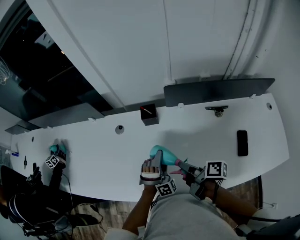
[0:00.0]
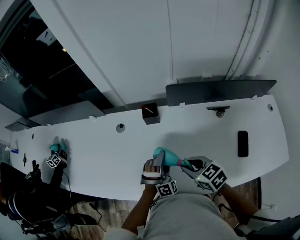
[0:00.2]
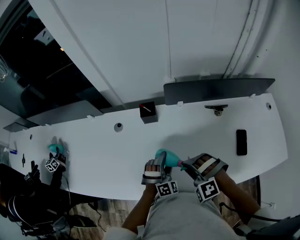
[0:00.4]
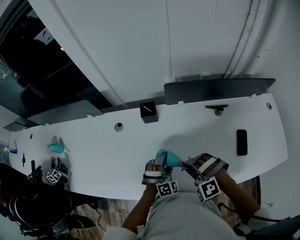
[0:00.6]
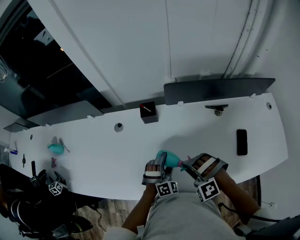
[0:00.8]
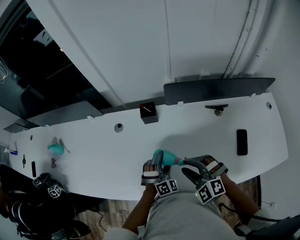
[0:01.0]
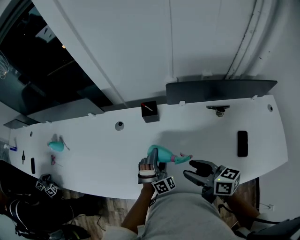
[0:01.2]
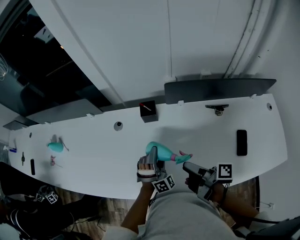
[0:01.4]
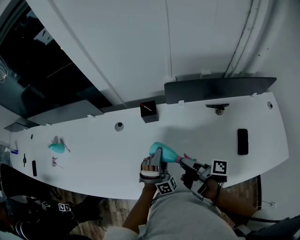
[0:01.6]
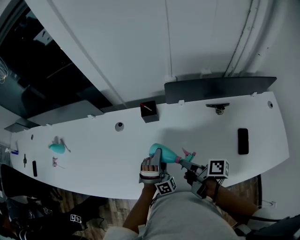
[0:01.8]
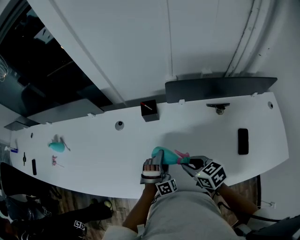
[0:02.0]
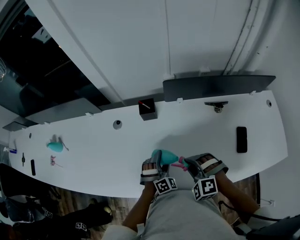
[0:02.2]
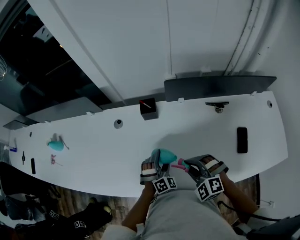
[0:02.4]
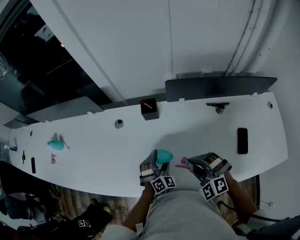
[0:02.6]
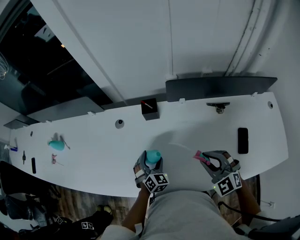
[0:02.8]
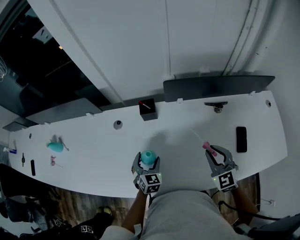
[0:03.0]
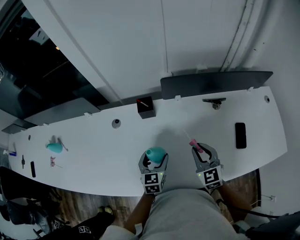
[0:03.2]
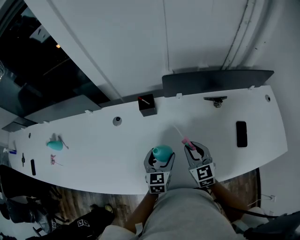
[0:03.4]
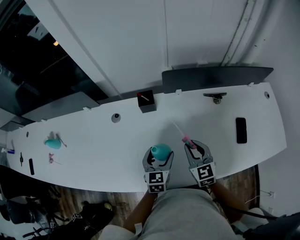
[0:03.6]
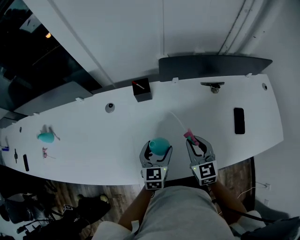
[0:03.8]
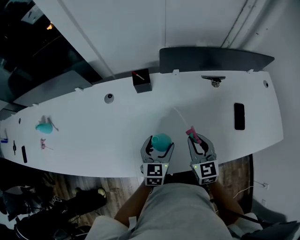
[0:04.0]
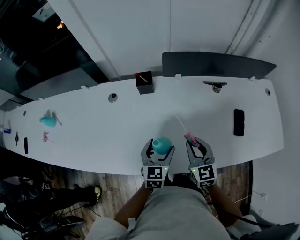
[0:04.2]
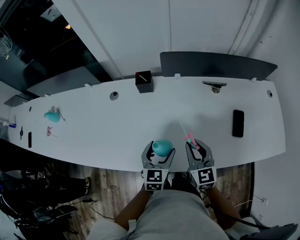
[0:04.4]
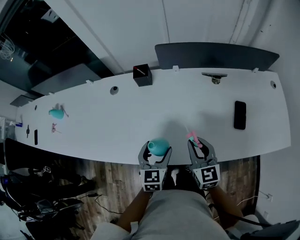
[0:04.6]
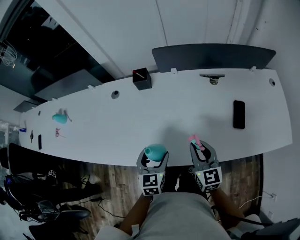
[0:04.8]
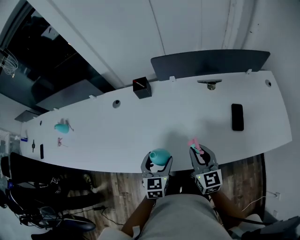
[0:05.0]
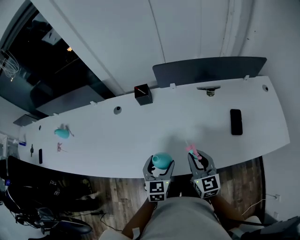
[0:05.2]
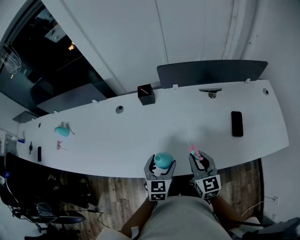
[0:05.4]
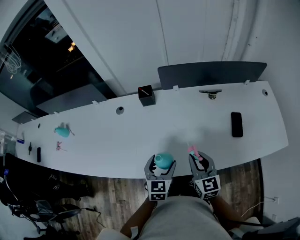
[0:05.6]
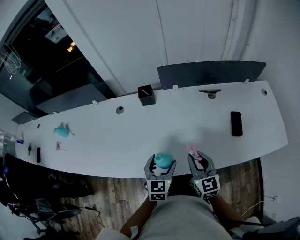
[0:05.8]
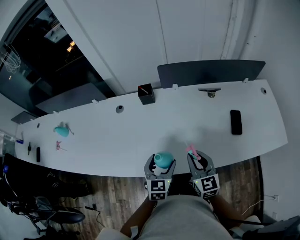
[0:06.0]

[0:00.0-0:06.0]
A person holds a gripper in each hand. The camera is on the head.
0:00.0 to 0:01.6: The right gripper moves some 5 cm upward and comes back.
0:01.6 to 0:03.0: The left gripper shifts some 10 cm to the left, and twists approximately 60 degrees counterclockwise, seen from behind, while the right gripper is displaced to the right by approximately 10 cm, twists approximately 120 degrees counterclockwise, seen from behind, and closes up.
0:03.0 to 0:04.4: The left gripper goes approximately 15 cm to the right, backward and upward, and changes its angle by some 20 degrees. Meanwhile the right gripper shifts about 10 cm backward, and swivels some 20 degrees.
0:04.4 to 0:06.0: Both grippers move backward, approximately 5 cm.

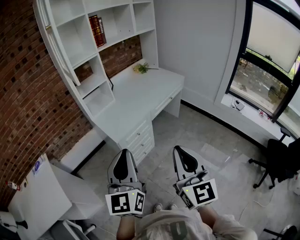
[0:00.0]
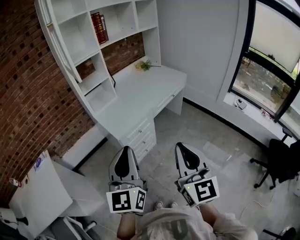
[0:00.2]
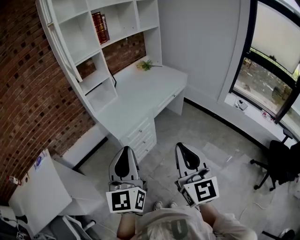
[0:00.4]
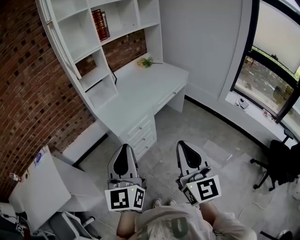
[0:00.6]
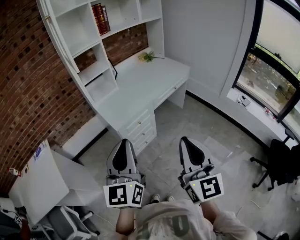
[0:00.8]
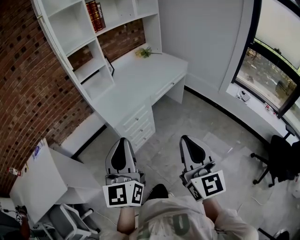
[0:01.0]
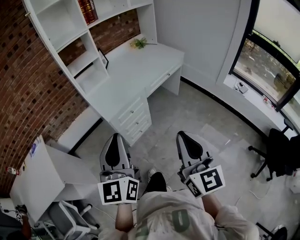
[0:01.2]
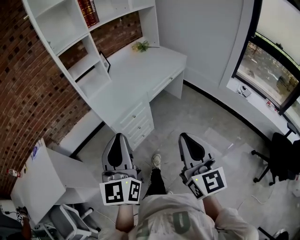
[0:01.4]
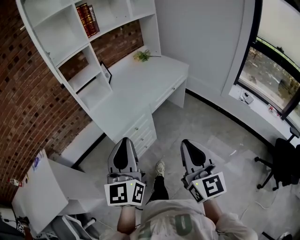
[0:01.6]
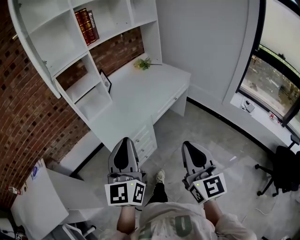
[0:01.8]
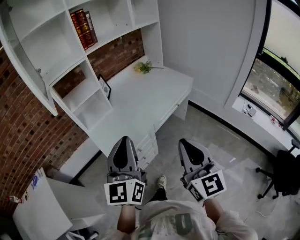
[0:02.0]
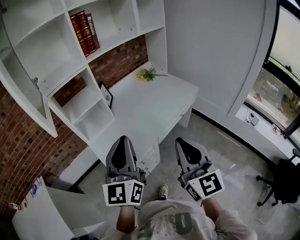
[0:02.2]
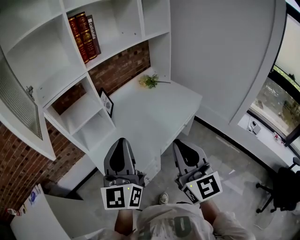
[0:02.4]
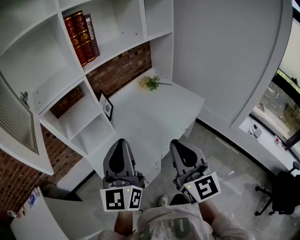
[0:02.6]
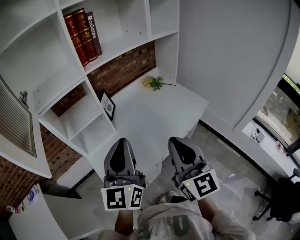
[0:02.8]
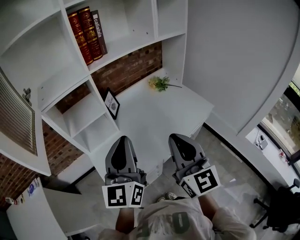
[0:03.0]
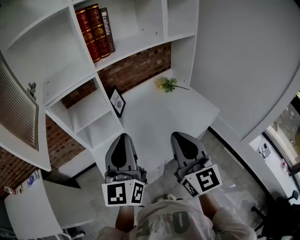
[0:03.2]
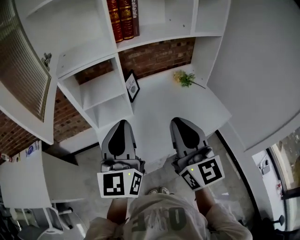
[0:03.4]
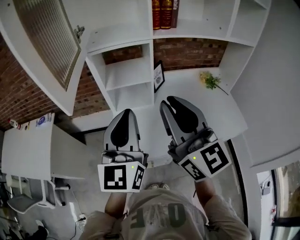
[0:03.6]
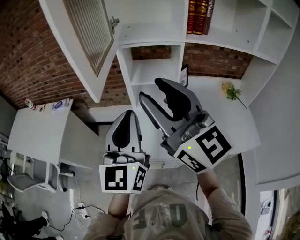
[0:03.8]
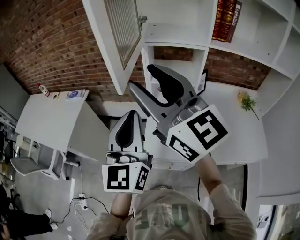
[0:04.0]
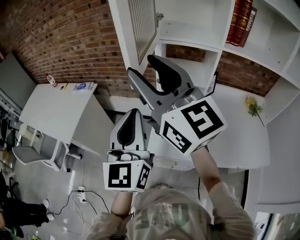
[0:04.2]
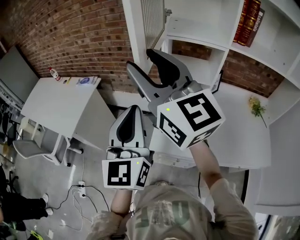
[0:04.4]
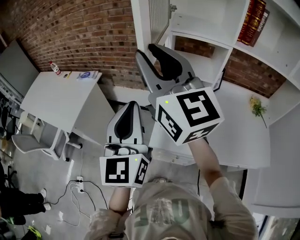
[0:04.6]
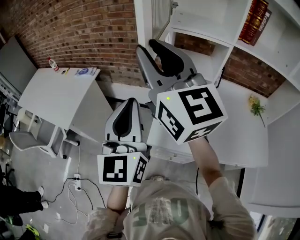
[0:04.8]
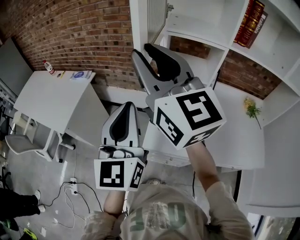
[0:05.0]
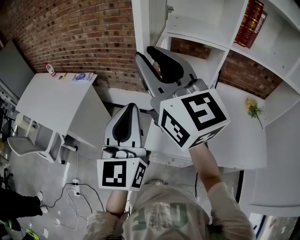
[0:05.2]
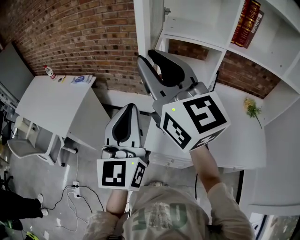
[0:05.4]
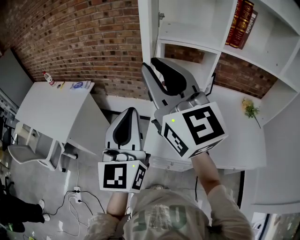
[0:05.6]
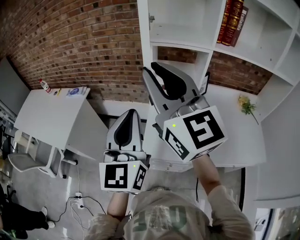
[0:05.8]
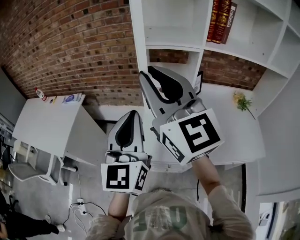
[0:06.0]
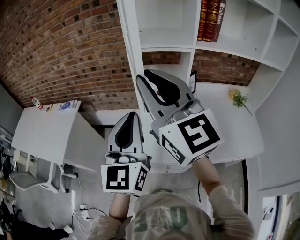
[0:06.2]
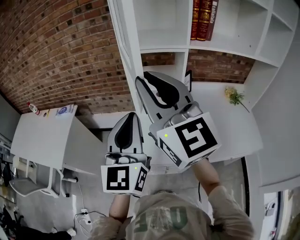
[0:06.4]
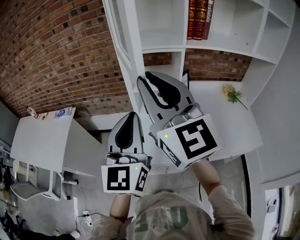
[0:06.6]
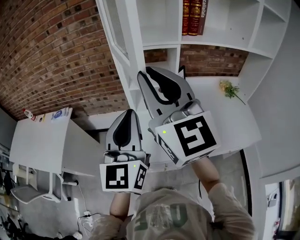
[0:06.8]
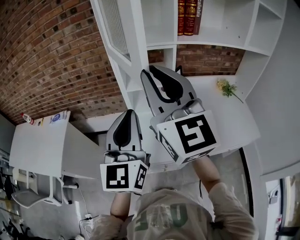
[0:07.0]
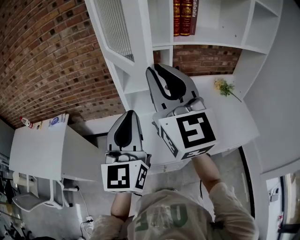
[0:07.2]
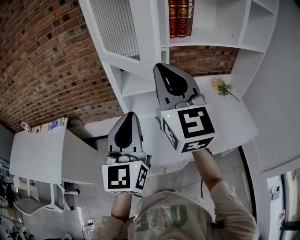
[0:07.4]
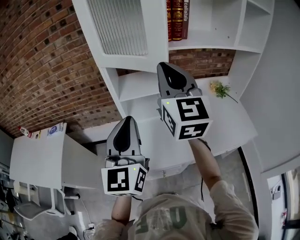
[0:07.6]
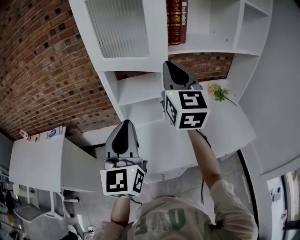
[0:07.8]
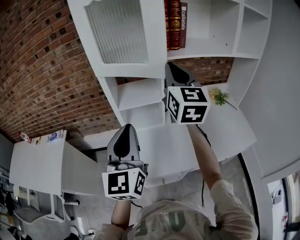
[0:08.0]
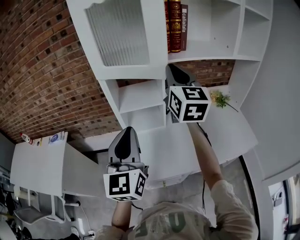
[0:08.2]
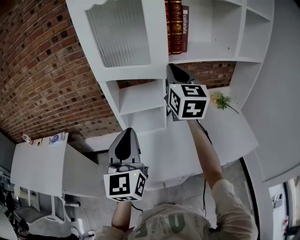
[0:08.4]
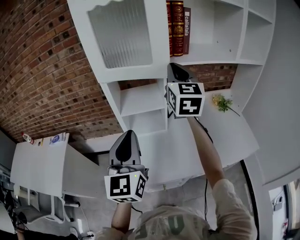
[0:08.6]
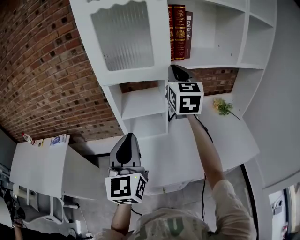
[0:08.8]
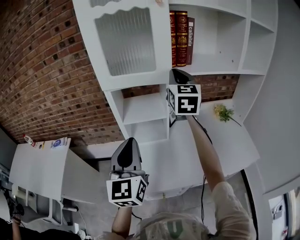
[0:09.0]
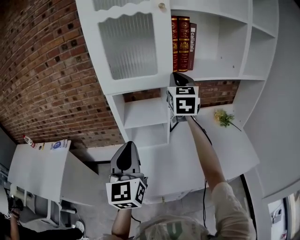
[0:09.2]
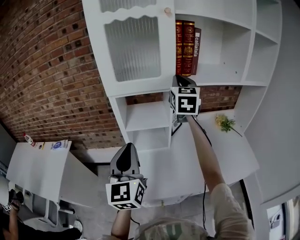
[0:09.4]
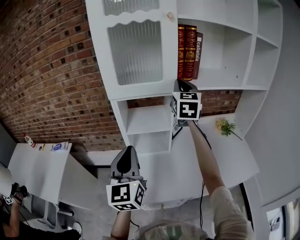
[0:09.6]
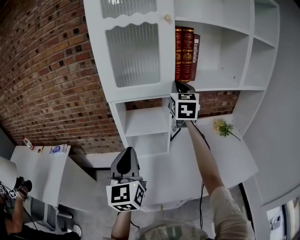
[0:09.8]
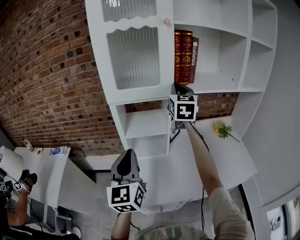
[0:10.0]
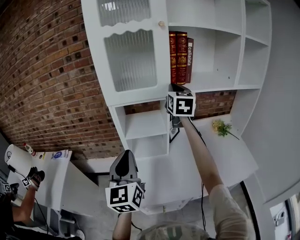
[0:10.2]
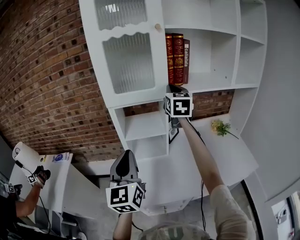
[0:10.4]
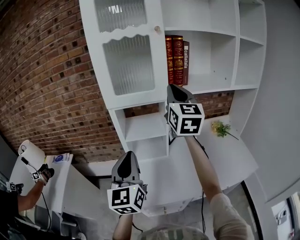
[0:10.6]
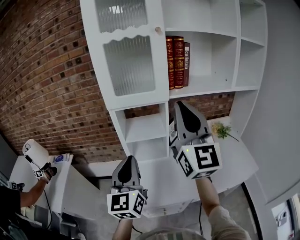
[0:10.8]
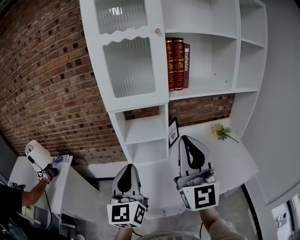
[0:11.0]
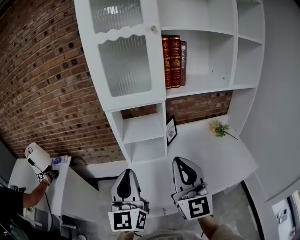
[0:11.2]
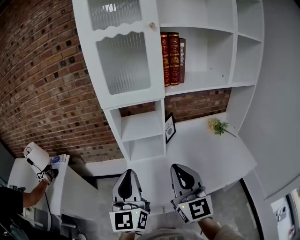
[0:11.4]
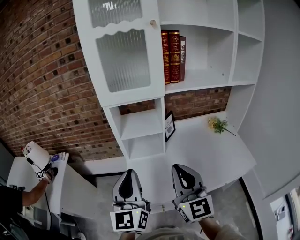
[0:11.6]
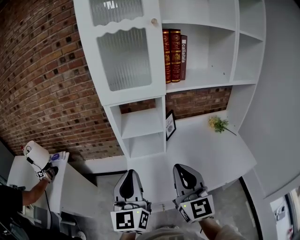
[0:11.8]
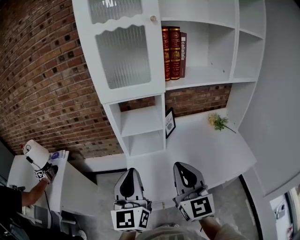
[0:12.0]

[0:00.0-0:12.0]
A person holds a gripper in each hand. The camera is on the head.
0:00.0 to 0:01.6: The right gripper shifts about 10 cm to the right, forward and downward. Meanwhile the left gripper is displaced forward and to the right by roughly 10 cm.
0:01.6 to 0:03.0: The two grippers go about 40 cm forward.
0:03.0 to 0:04.4: The right gripper shifts by some 40 cm, turns by about 60 degrees, and opens up. The left gripper changes place by roughly 25 cm, and swivels about 50 degrees.
0:04.4 to 0:06.0: The grippers both shift to the right by some 5 cm. The right gripper closes up.
0:06.0 to 0:07.6: The left gripper goes approximately 5 cm to the right, while the right gripper shifts some 15 cm to the right and forward, and turns by about 30 degrees.
0:07.6 to 0:09.0: The right gripper shifts some 15 cm forward.
0:09.0 to 0:10.4: The grippers stay close to where they were, moving slightly.
0:10.4 to 0:12.0: The right gripper travels backward by about 30 cm, while the left gripper goes some 5 cm backward.

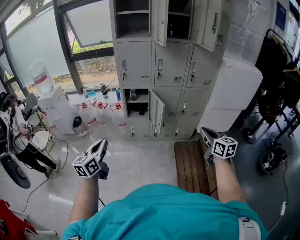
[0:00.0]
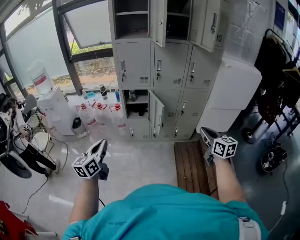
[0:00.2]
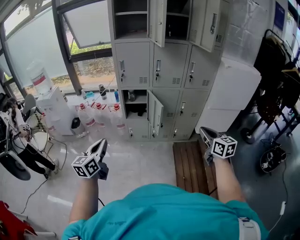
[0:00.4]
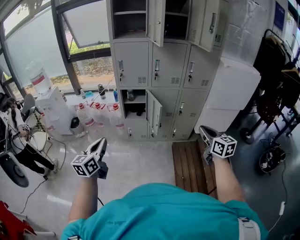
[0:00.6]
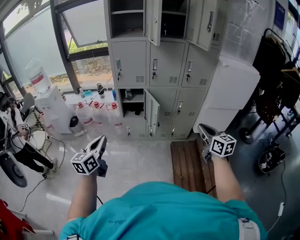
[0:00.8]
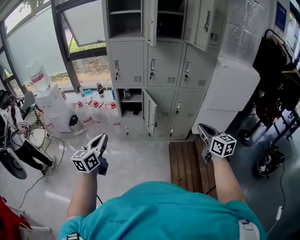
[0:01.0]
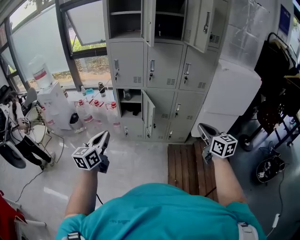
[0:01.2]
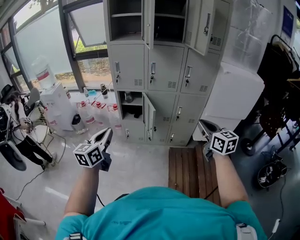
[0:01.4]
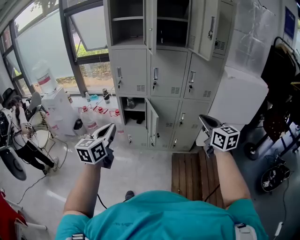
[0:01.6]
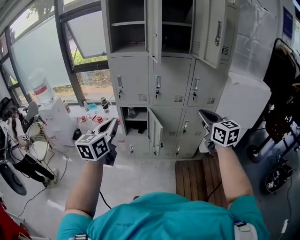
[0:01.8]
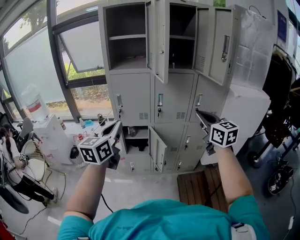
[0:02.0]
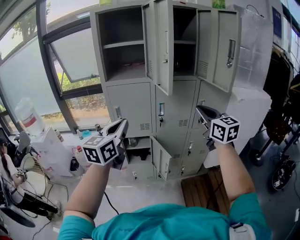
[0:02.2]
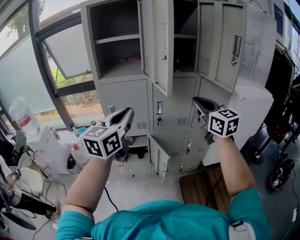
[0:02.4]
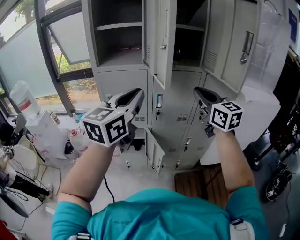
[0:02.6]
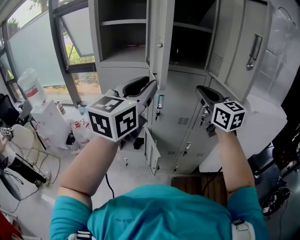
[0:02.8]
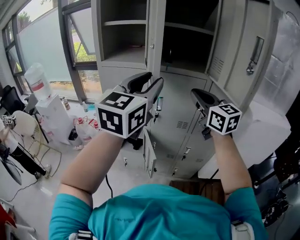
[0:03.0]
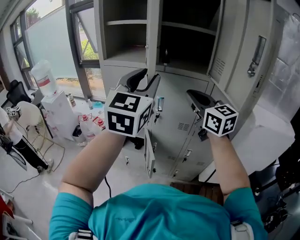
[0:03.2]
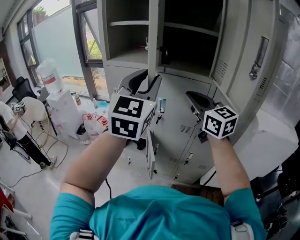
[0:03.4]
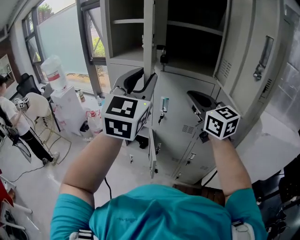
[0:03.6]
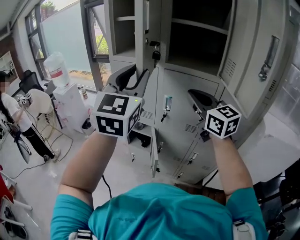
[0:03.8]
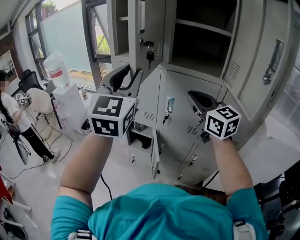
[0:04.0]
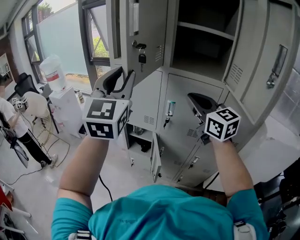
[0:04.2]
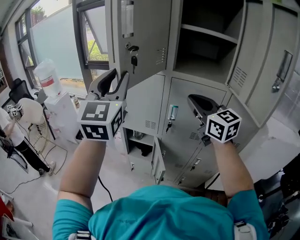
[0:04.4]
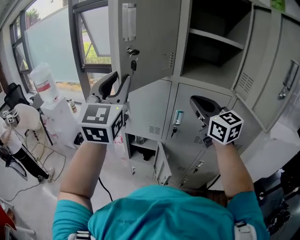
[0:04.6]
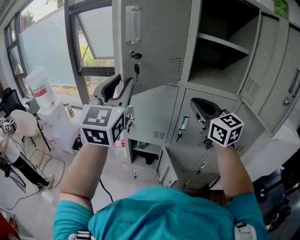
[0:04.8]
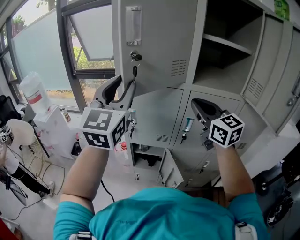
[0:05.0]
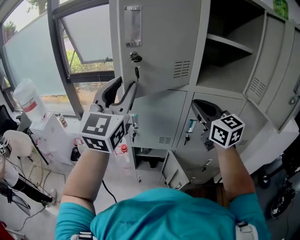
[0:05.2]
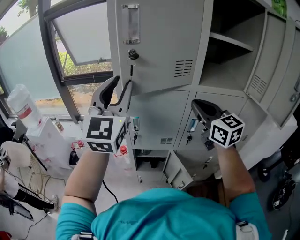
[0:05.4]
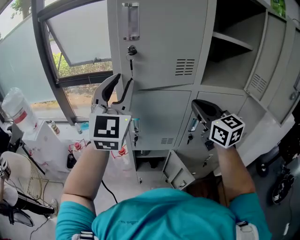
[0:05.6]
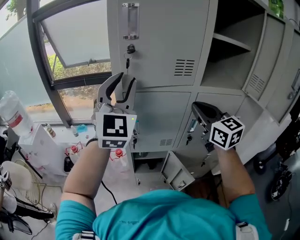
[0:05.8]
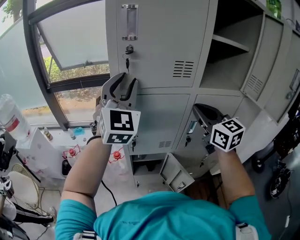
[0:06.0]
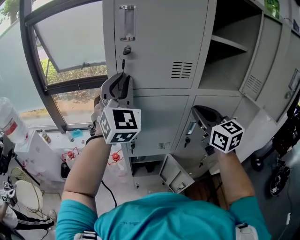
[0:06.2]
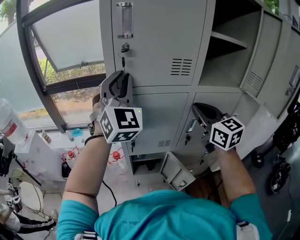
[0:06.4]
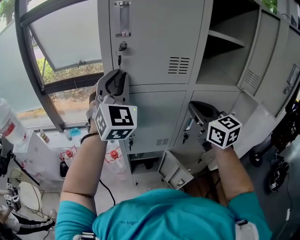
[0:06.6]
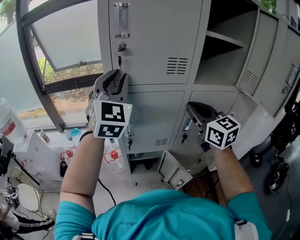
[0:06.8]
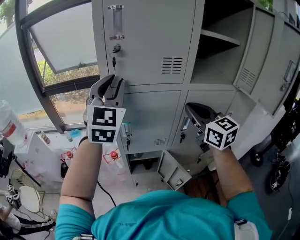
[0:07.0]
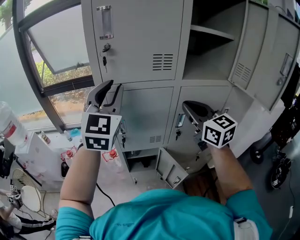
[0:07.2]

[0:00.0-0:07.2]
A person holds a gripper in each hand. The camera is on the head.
0:00.0 to 0:01.4: The left gripper travels to the right by some 15 cm. The right gripper shifts some 10 cm to the right and upward.
0:01.4 to 0:02.8: The grippers both shift forward and upward by some 40 cm. The left gripper changes its angle by about 20 degrees.
0:02.8 to 0:04.4: The right gripper shifts by approximately 10 cm, while the left gripper ends up about 15 cm from where it was, and turns by approximately 40 degrees.
0:04.4 to 0:05.8: The left gripper heads forward and to the left, covering about 20 cm, and turns by roughly 20 degrees, while the right gripper travels to the left and forward by about 15 cm, and rotates roughly 20 degrees.
0:05.8 to 0:07.2: There are only small adjustments of the grippers.
